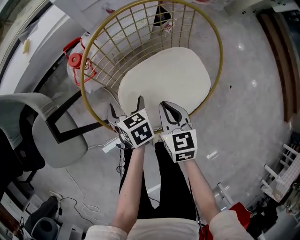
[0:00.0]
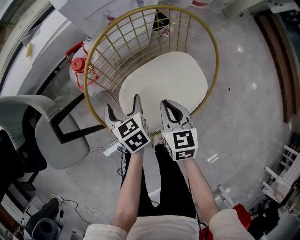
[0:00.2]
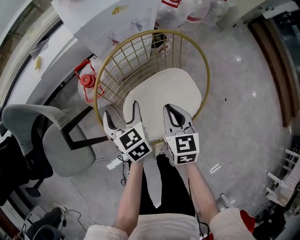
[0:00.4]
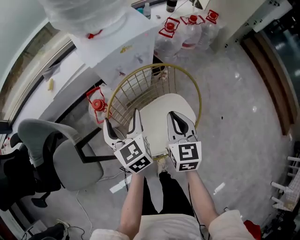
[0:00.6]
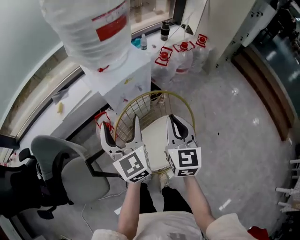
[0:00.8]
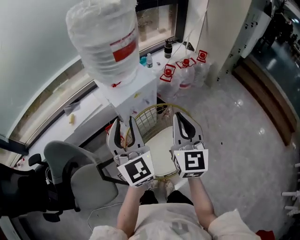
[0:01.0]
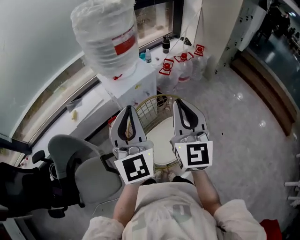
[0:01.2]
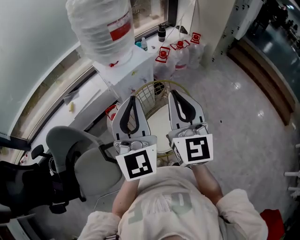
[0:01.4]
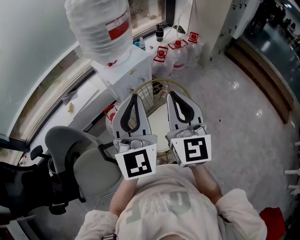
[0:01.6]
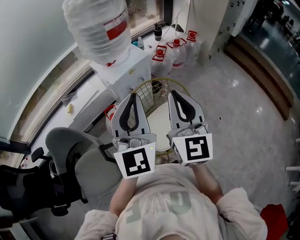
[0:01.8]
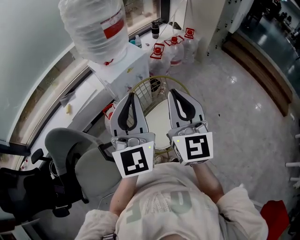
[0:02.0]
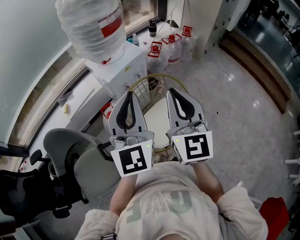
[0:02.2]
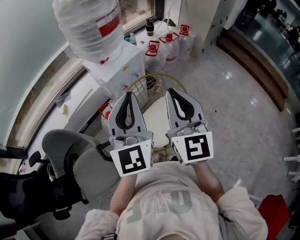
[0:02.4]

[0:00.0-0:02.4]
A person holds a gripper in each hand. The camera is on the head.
0.0 to 1.2 s: Both grippers travel together upward, approximately 60 cm. The right gripper tips its fingers upward by roughly 50 degrees, while the left gripper angles its fingers upward, by roughly 70 degrees, and closes.
1.2 to 2.4 s: The right gripper moves approximately 5 cm.

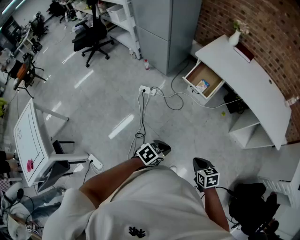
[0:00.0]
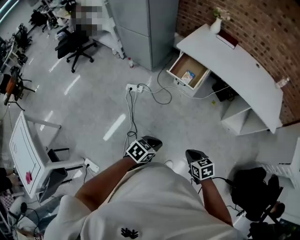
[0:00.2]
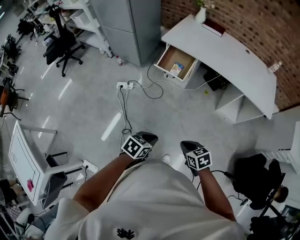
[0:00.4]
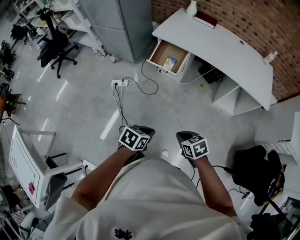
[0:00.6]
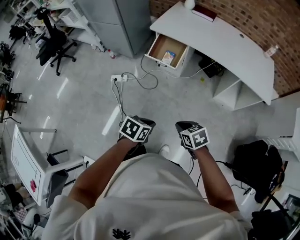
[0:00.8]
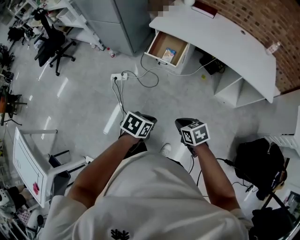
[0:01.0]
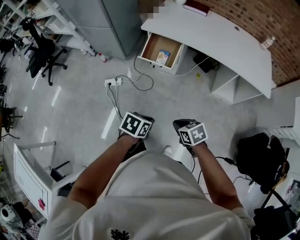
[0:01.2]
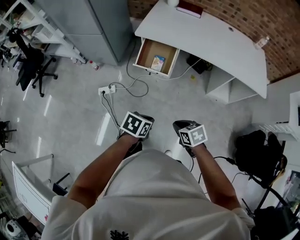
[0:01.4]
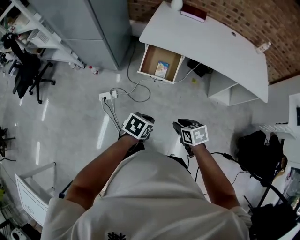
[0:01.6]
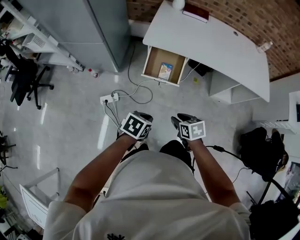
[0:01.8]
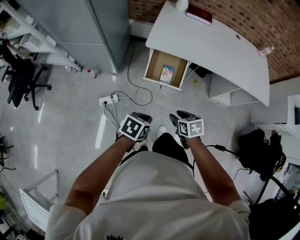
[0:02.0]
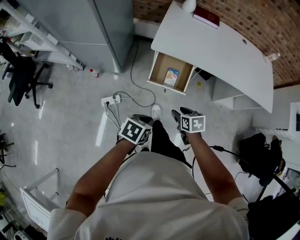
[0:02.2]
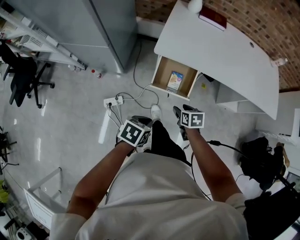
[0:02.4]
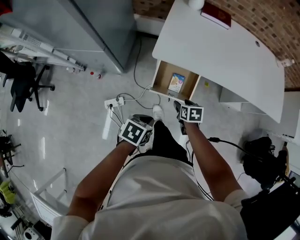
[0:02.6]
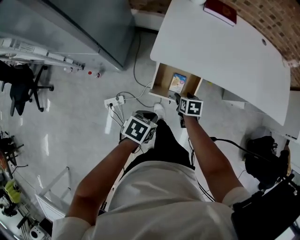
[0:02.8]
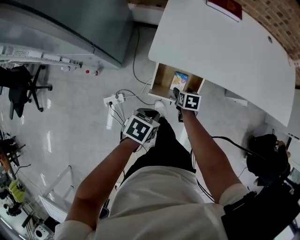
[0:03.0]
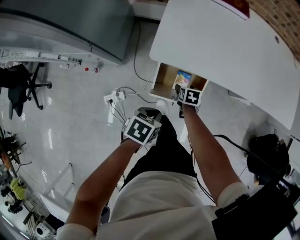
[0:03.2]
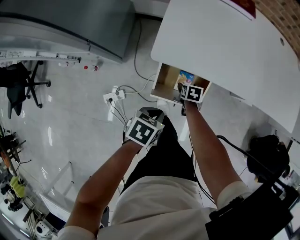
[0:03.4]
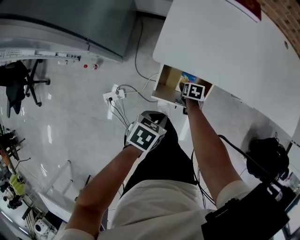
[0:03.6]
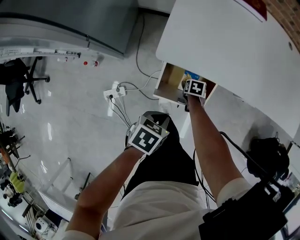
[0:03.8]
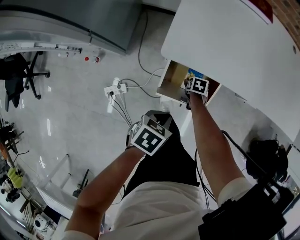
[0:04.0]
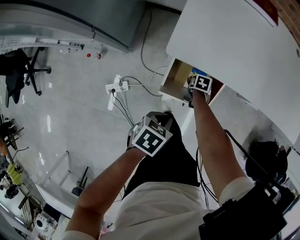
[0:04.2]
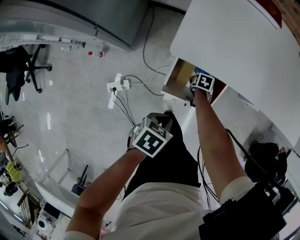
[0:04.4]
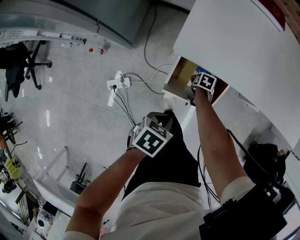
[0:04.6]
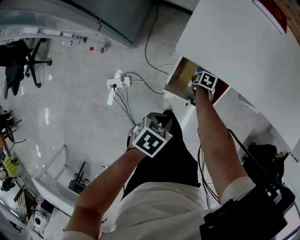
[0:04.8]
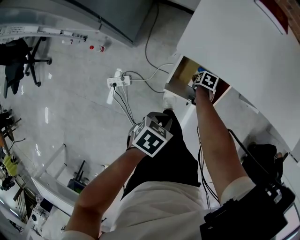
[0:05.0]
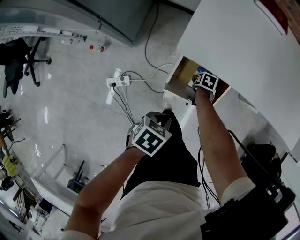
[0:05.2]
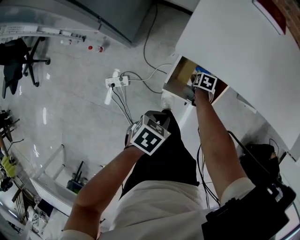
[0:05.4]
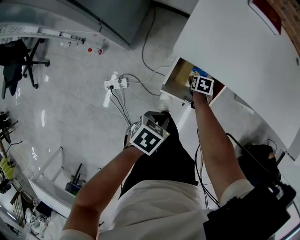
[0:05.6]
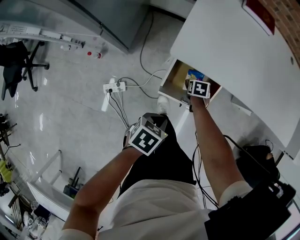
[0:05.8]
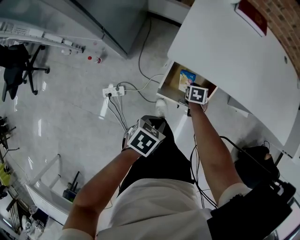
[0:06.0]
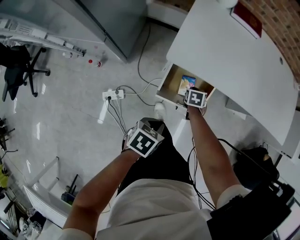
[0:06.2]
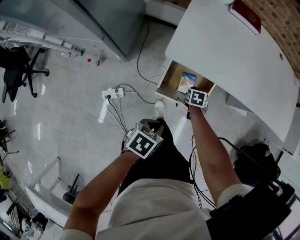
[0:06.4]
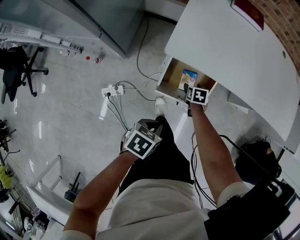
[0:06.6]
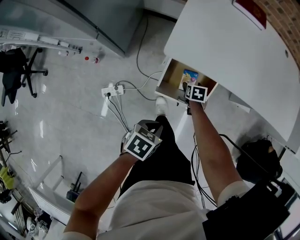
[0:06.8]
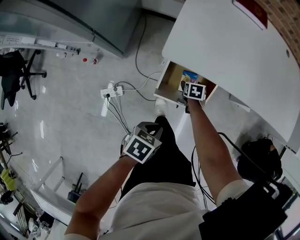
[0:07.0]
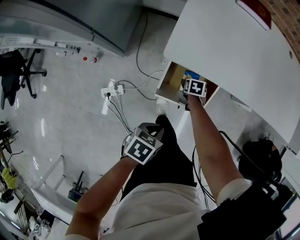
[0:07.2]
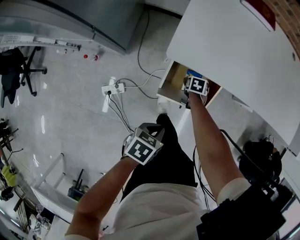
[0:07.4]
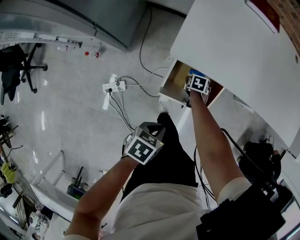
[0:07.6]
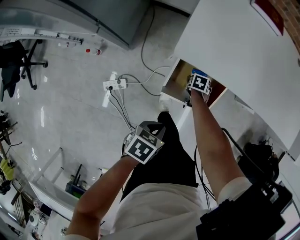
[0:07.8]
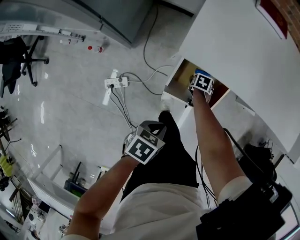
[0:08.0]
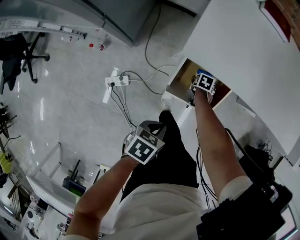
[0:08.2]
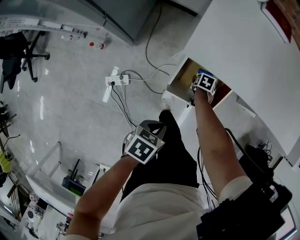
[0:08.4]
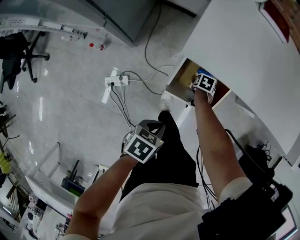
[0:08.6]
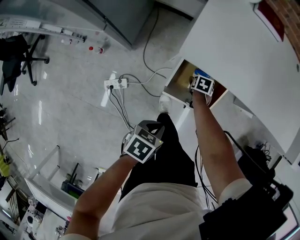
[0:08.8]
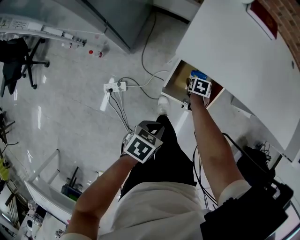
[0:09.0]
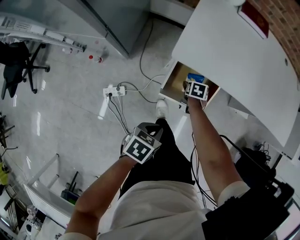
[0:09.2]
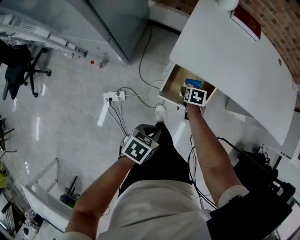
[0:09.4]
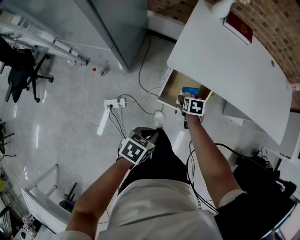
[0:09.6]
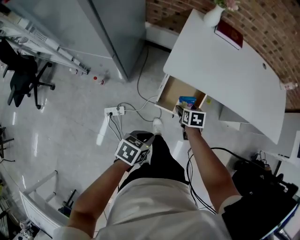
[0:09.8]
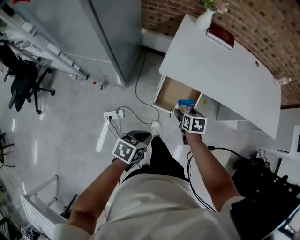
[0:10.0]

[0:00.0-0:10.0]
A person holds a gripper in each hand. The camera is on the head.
0.0 to 1.4 s: Both grippers travel together forward, roughly 20 cm.
1.4 to 2.8 s: Both grippers are carried forward and to the left, approximately 50 cm. The right gripper changes its angle by about 30 degrees, and opens up.
2.8 to 4.2 s: The right gripper moves downward, about 25 cm, and changes its angle by approximately 20 degrees. Meanwhile the left gripper shifts roughly 15 cm downward.
4.2 to 5.8 s: The right gripper moves upward, about 5 cm.
5.8 to 7.2 s: The right gripper goes upward and returns, some 5 cm each way, and closes and opens again.
7.2 to 8.6 s: There are only small adjustments of the grippers.
8.6 to 10.0 s: The left gripper goes roughly 20 cm upward; the right gripper goes about 35 cm upward, and swivels approximately 30 degrees.

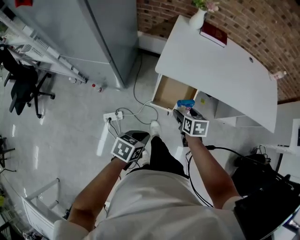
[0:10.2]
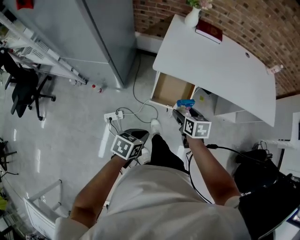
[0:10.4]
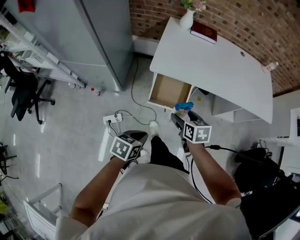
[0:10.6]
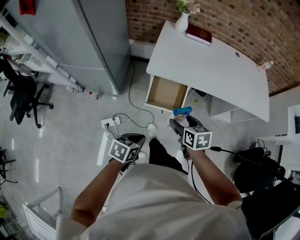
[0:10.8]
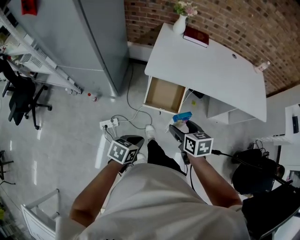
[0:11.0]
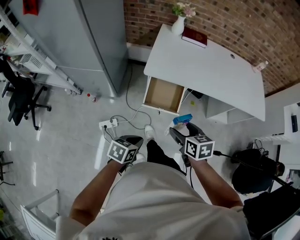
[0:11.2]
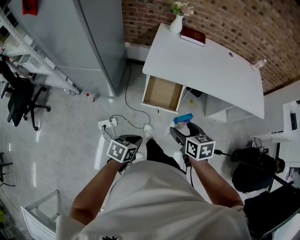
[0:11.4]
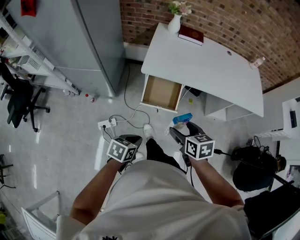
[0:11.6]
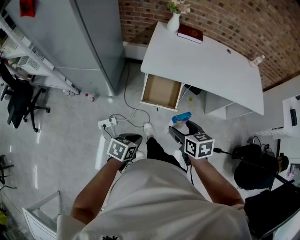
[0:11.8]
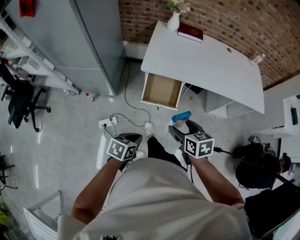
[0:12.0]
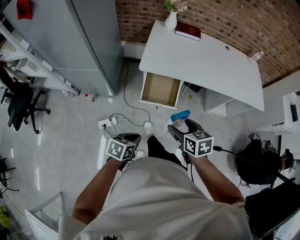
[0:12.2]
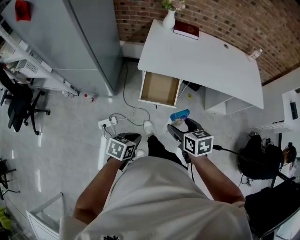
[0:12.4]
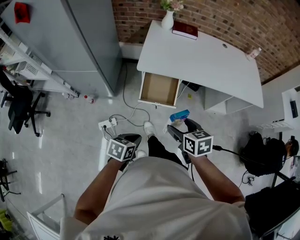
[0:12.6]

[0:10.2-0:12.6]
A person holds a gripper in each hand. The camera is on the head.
10.2 to 11.4 s: The left gripper heads backward, covering some 10 cm. The right gripper goes some 20 cm backward and upward.
11.4 to 12.6 s: The grippers stay close to where they were, moving slightly.

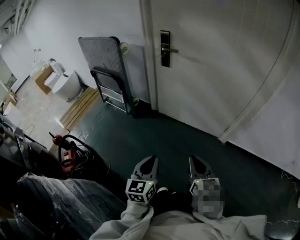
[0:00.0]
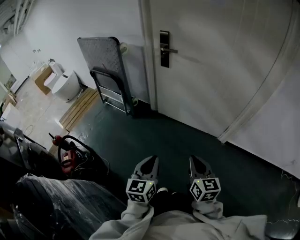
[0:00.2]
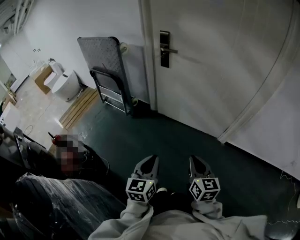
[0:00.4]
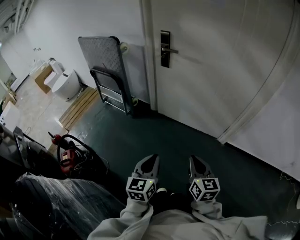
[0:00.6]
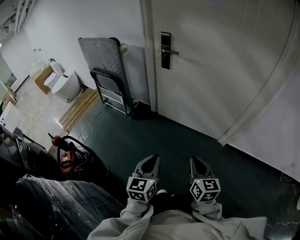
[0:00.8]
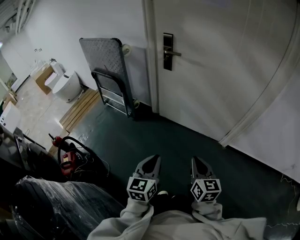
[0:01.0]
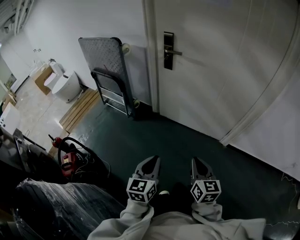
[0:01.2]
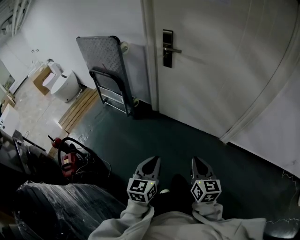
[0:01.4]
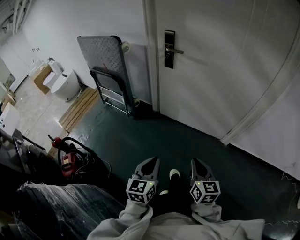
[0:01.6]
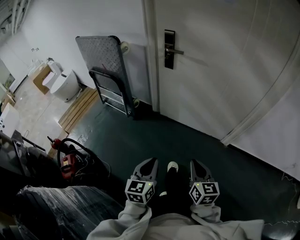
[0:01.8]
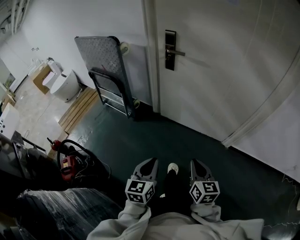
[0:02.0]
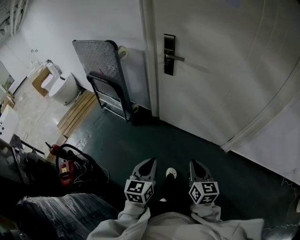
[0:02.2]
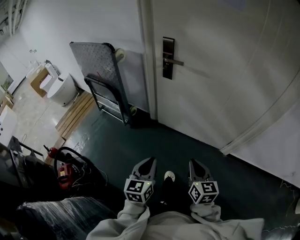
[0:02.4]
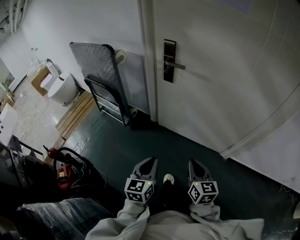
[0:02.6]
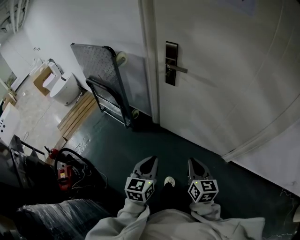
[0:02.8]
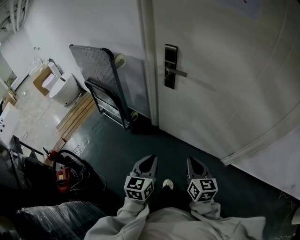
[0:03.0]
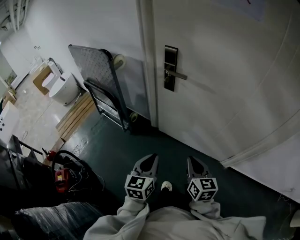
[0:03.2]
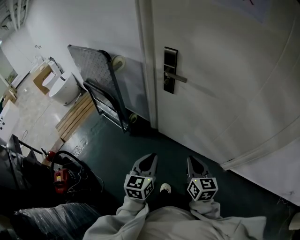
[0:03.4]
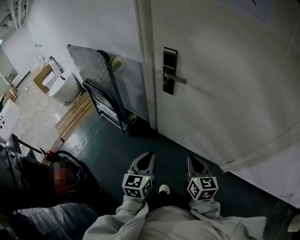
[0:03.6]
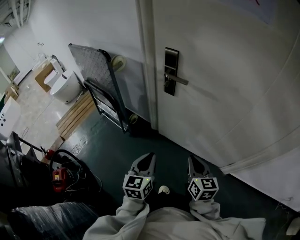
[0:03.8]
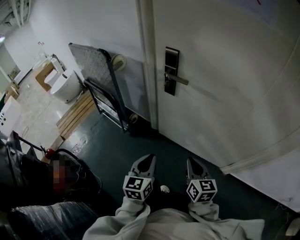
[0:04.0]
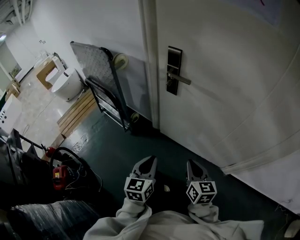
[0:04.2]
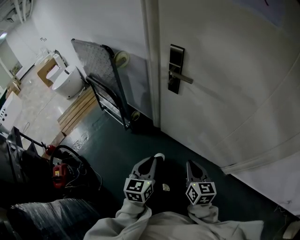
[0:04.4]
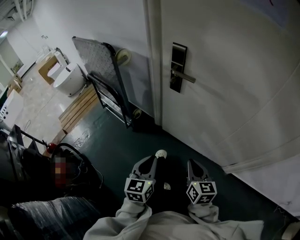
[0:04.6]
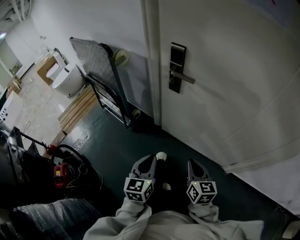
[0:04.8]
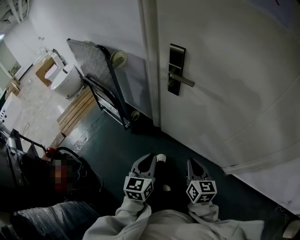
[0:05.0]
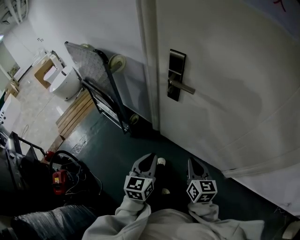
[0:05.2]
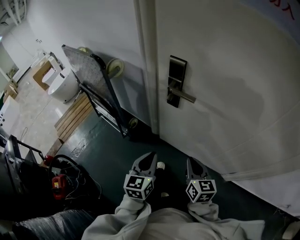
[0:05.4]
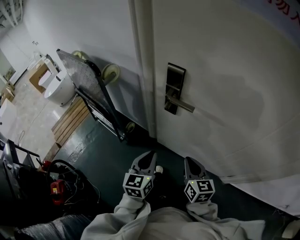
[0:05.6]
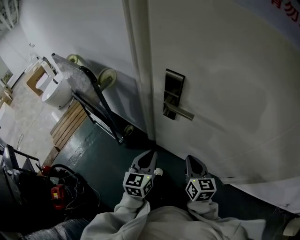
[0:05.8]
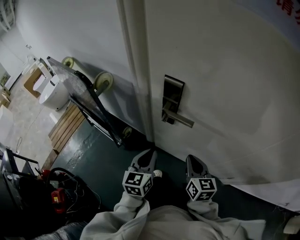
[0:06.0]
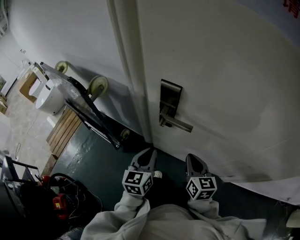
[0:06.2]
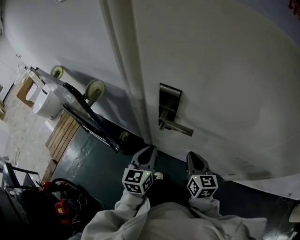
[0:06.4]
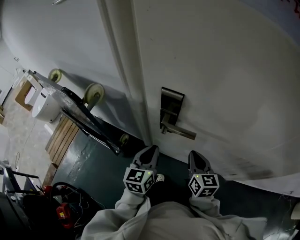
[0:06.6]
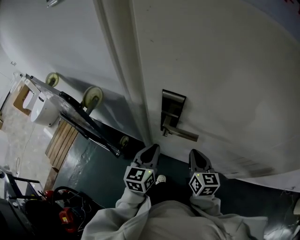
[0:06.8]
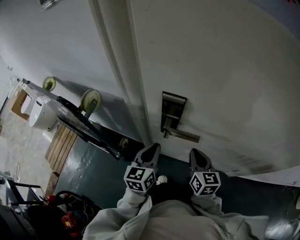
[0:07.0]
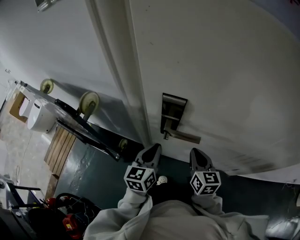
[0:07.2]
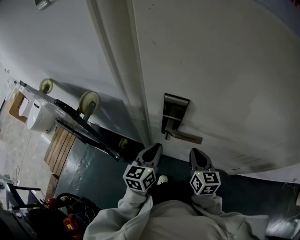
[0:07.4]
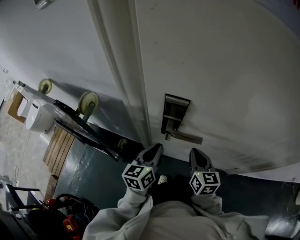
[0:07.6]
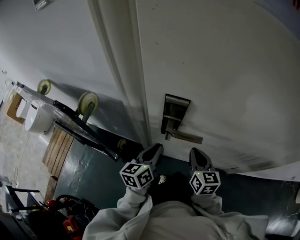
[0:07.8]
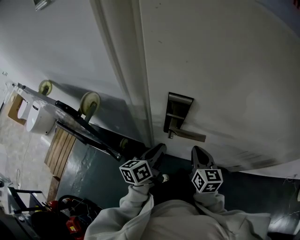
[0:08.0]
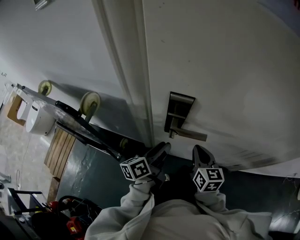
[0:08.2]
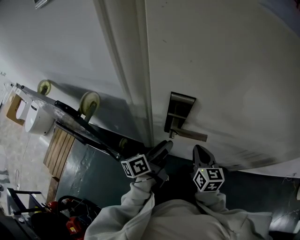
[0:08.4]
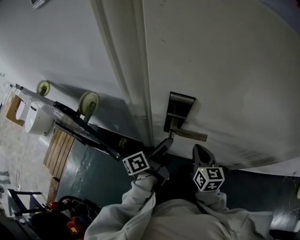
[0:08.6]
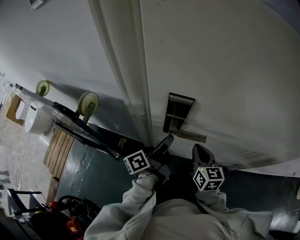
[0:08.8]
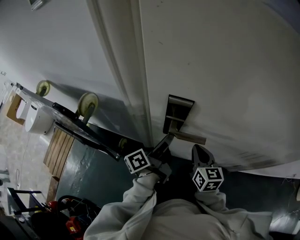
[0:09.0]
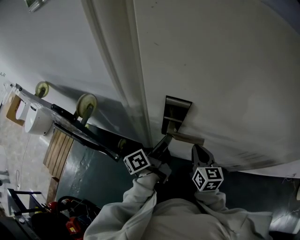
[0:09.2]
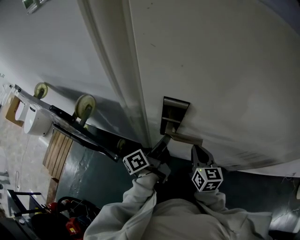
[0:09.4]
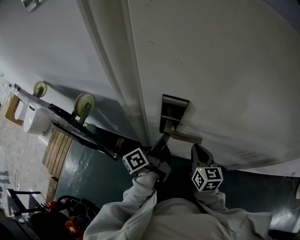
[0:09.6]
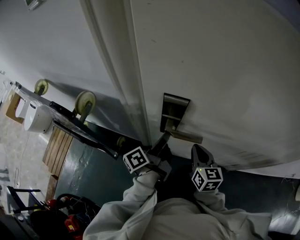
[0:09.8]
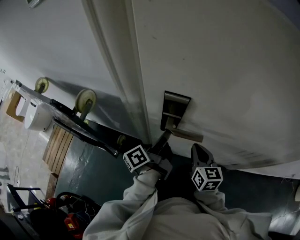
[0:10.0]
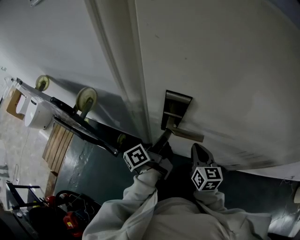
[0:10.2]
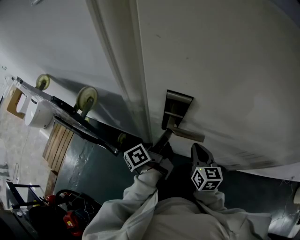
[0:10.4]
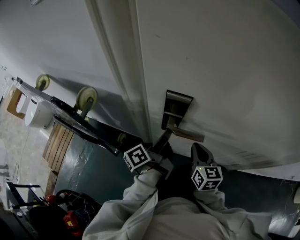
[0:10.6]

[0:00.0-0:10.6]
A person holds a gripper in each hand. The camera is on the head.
0.0 to 1.6 s: The grippers stay close to where they were, moving slightly.
1.6 to 3.0 s: The grippers both shift forward by approximately 25 cm.
3.0 to 4.6 s: Both grippers travel together forward, about 5 cm.
4.6 to 6.0 s: The grippers both shift forward by some 25 cm.
6.0 to 7.6 s: Both grippers travel together forward, approximately 10 cm. The left gripper rotates approximately 20 degrees.
7.6 to 9.0 s: The left gripper changes place by about 5 cm, rolls counterclockwise, seen from behind, by approximately 50 degrees, and opens up.
9.0 to 10.6 s: The left gripper closes up.
